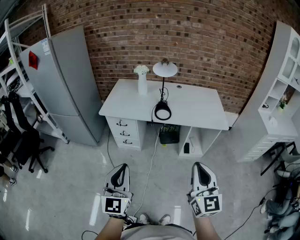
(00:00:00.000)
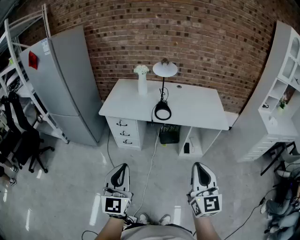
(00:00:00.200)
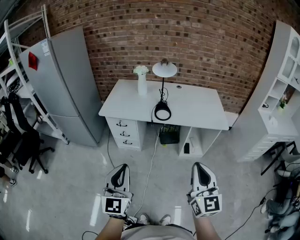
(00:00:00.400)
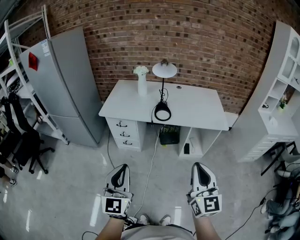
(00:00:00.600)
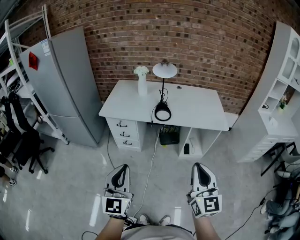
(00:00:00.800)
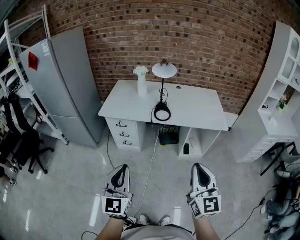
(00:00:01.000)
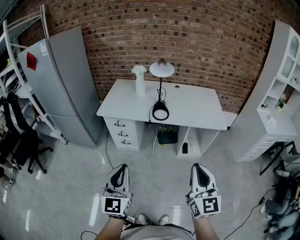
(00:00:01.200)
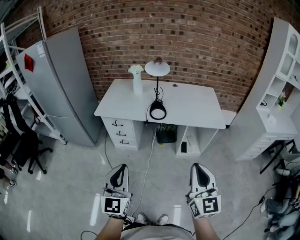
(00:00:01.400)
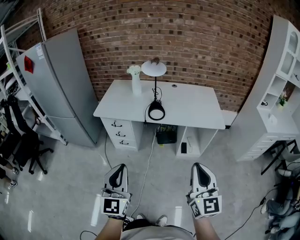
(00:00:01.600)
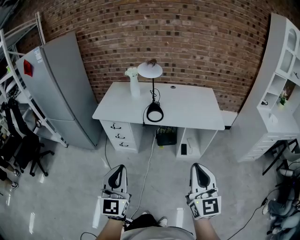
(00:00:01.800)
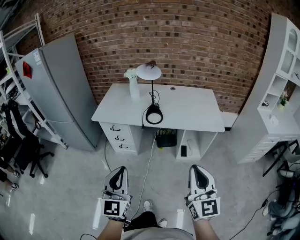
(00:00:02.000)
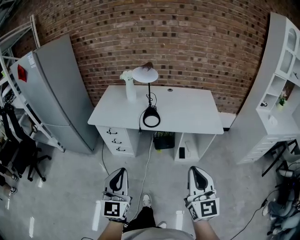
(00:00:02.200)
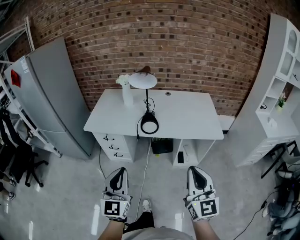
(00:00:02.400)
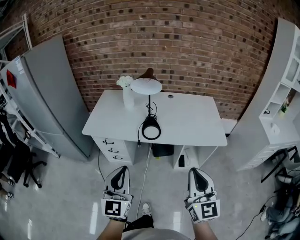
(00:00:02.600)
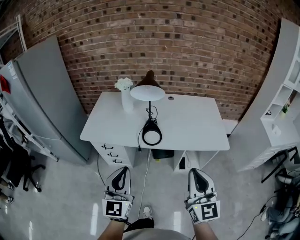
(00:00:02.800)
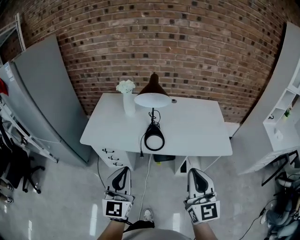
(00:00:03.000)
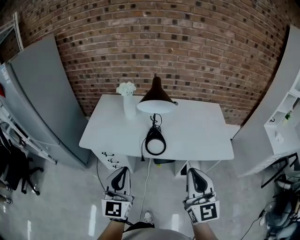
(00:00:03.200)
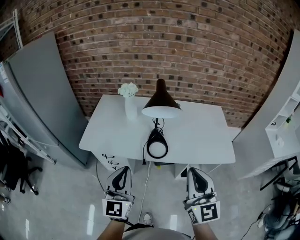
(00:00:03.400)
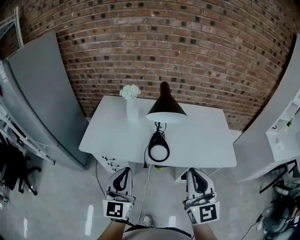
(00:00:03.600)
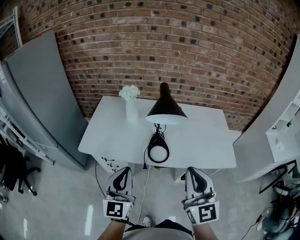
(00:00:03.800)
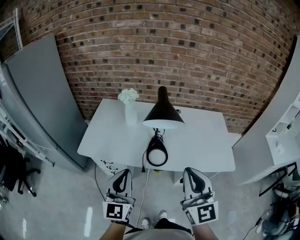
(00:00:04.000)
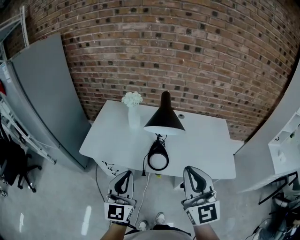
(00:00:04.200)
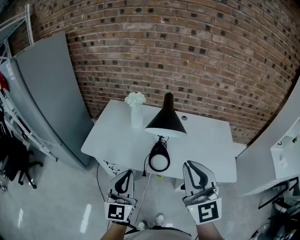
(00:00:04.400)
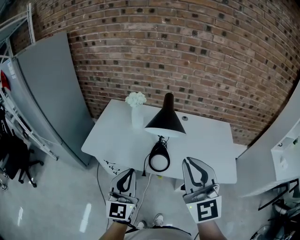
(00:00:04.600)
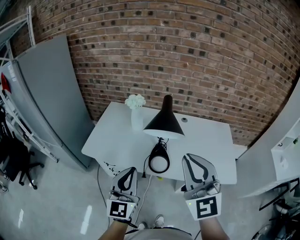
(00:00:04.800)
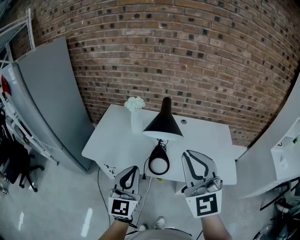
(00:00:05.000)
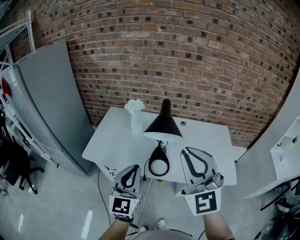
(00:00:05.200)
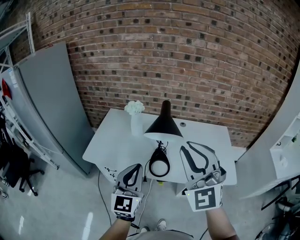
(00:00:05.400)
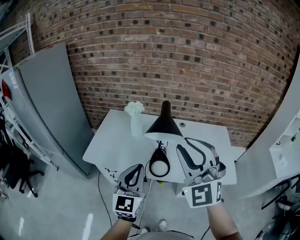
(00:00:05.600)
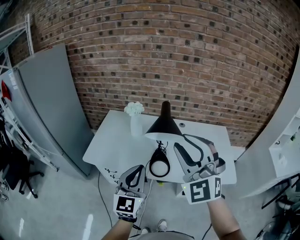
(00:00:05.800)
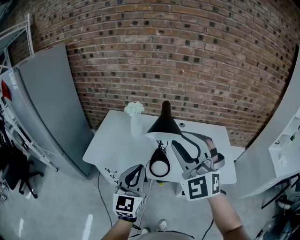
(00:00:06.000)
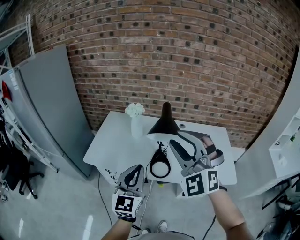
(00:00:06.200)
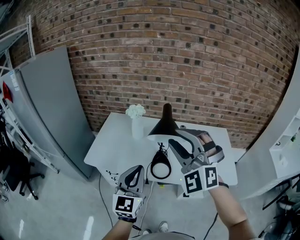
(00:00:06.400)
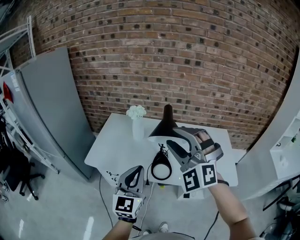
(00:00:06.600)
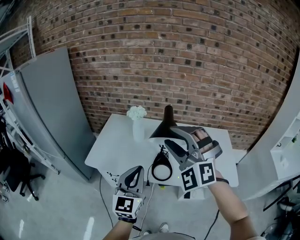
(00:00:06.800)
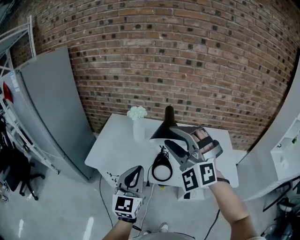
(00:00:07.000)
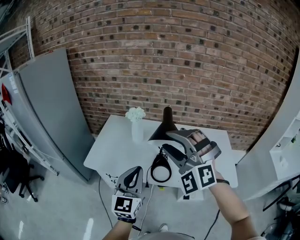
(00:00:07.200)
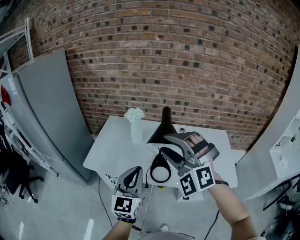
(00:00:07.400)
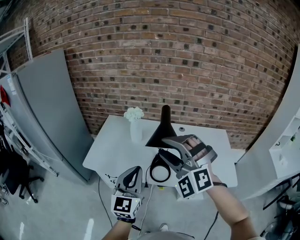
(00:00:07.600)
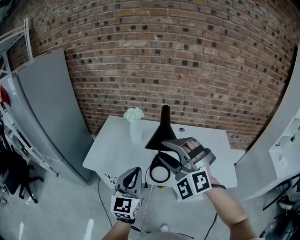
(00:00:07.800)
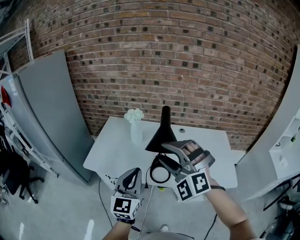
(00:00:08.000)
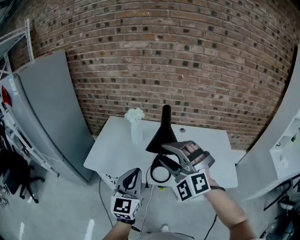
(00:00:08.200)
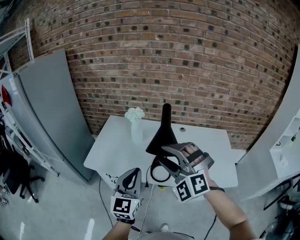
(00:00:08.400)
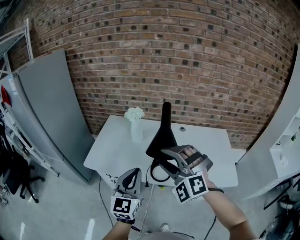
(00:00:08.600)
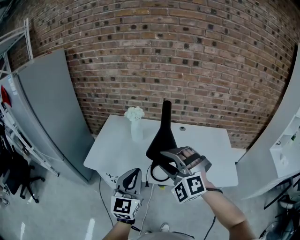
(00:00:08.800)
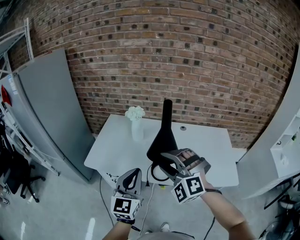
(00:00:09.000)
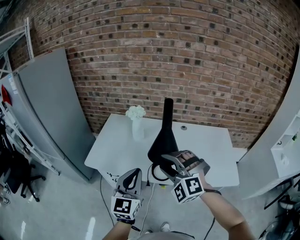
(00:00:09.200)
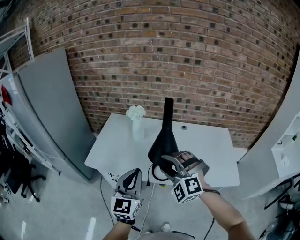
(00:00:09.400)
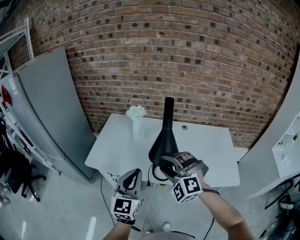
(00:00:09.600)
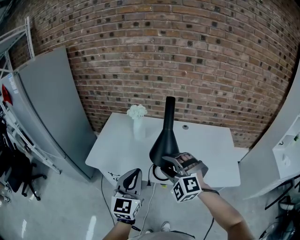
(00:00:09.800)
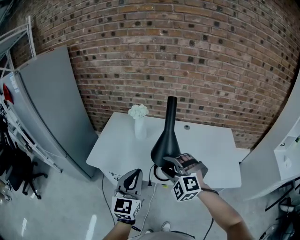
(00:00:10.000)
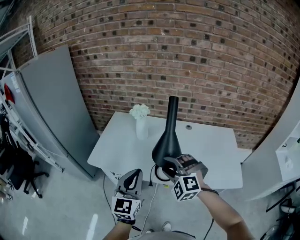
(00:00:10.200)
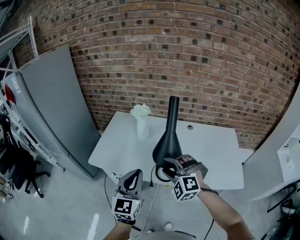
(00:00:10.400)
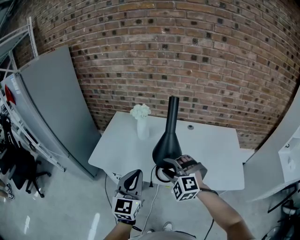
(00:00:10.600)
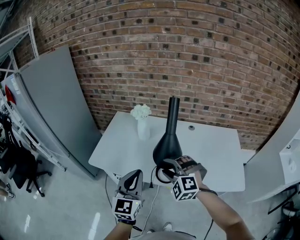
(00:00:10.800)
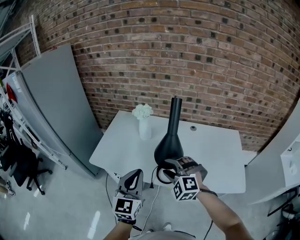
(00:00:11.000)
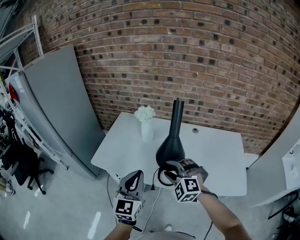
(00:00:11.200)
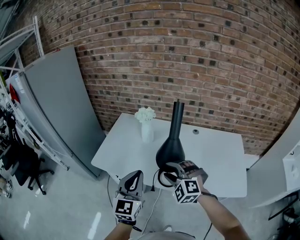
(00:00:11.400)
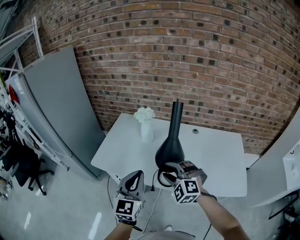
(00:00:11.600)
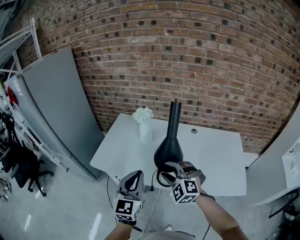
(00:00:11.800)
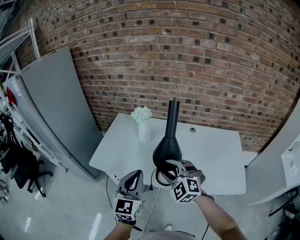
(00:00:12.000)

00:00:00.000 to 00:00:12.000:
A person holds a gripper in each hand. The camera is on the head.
00:00:00.000 to 00:00:01.600: Both grippers move to the right, about 5 cm.
00:00:01.600 to 00:00:03.000: Both grippers travel together forward, about 25 cm.
00:00:03.000 to 00:00:04.400: The left gripper is displaced forward by roughly 10 cm. The right gripper heads forward, upward and to the left, covering about 20 cm.
00:00:04.400 to 00:00:06.000: The right gripper goes approximately 10 cm upward and forward, rolls counterclockwise, seen from behind, by roughly 40 degrees, and opens its fingers.
00:00:06.000 to 00:00:07.600: The right gripper moves about 5 cm, and swivels approximately 20 degrees.
00:00:07.600 to 00:00:09.000: The right gripper travels downward by approximately 10 cm.
00:00:09.000 to 00:00:10.400: The right gripper moves downward, some 10 cm.
00:00:10.400 to 00:00:12.000: The grippers stay close to where they were, moving slightly.

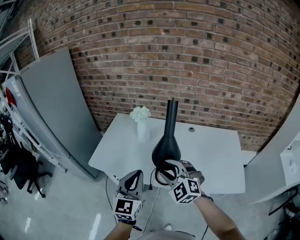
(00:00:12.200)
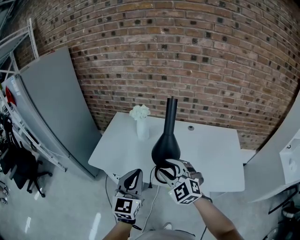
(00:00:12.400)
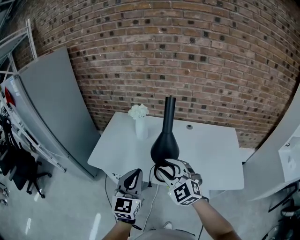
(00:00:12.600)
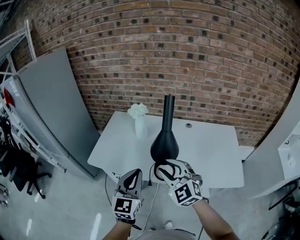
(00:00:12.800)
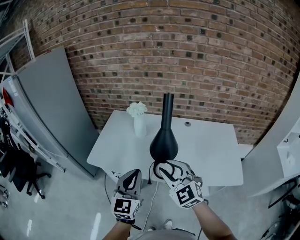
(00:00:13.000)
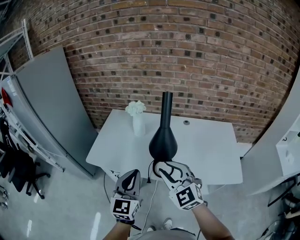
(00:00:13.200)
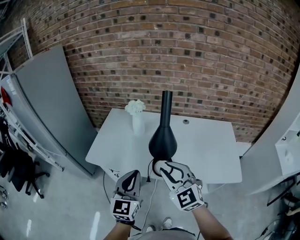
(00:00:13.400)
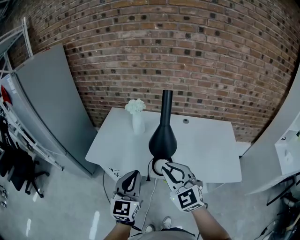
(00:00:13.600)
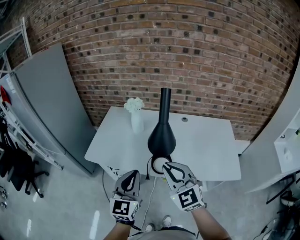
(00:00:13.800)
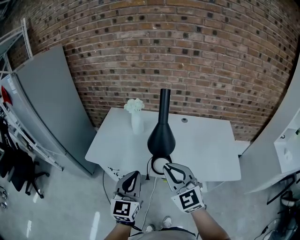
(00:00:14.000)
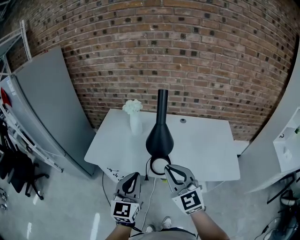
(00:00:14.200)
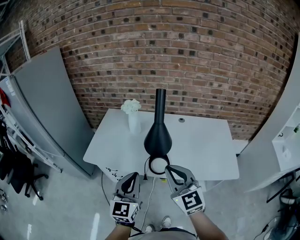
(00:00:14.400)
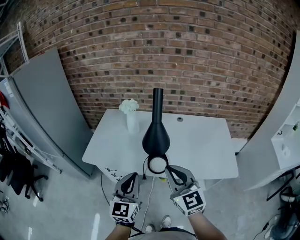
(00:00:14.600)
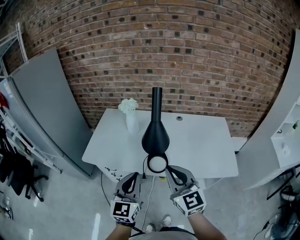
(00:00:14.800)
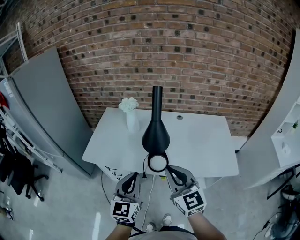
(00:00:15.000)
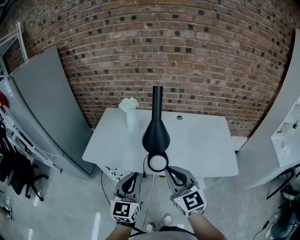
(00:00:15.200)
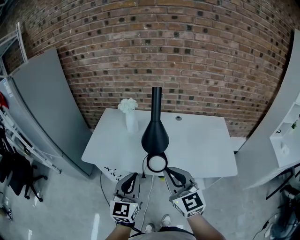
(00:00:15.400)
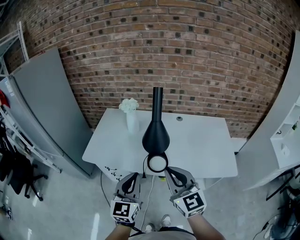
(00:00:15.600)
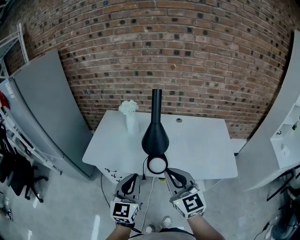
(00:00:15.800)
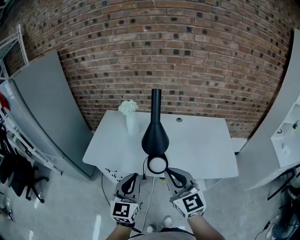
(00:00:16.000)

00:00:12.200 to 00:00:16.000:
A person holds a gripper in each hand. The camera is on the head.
00:00:12.200 to 00:00:13.400: The right gripper is displaced backward and upward by some 10 cm, rotates roughly 20 degrees, and closes.
00:00:13.400 to 00:00:14.800: The right gripper shifts by approximately 5 cm, turns by some 20 degrees, and closes up.
00:00:14.800 to 00:00:16.000: There are only small adjustments of the grippers.

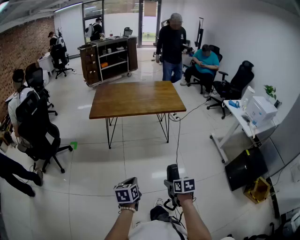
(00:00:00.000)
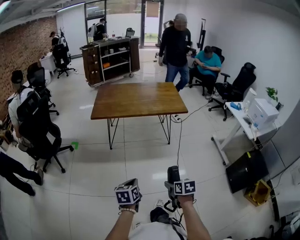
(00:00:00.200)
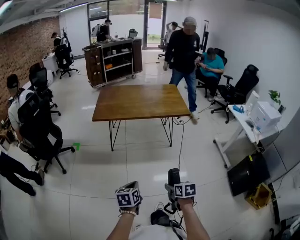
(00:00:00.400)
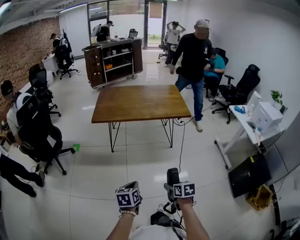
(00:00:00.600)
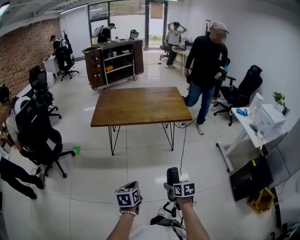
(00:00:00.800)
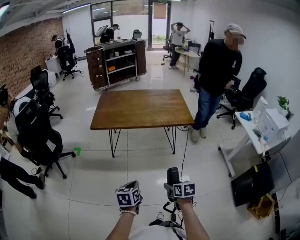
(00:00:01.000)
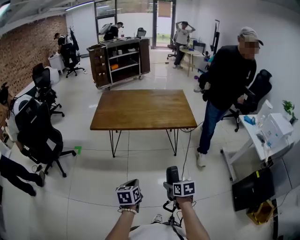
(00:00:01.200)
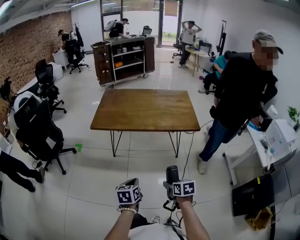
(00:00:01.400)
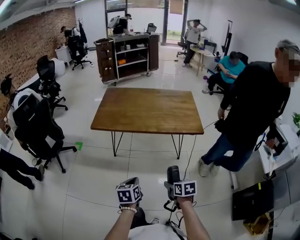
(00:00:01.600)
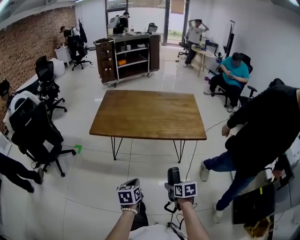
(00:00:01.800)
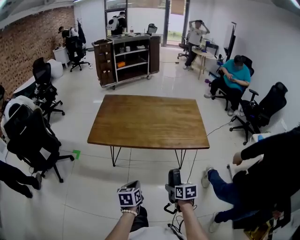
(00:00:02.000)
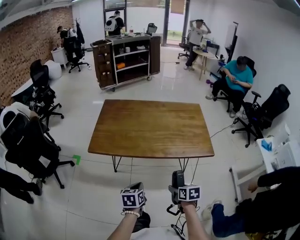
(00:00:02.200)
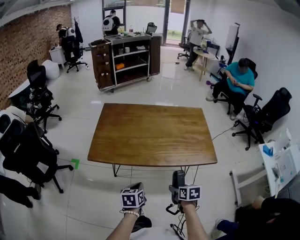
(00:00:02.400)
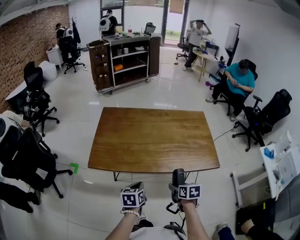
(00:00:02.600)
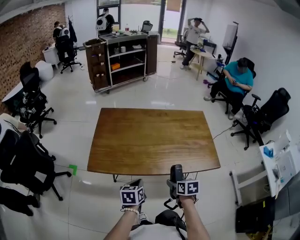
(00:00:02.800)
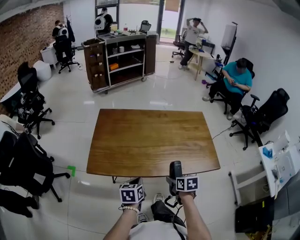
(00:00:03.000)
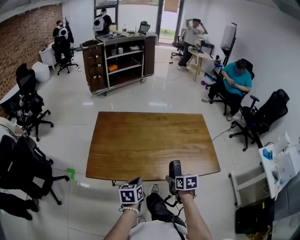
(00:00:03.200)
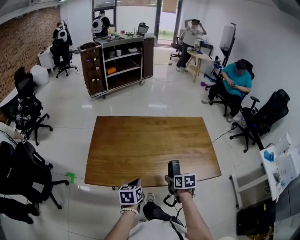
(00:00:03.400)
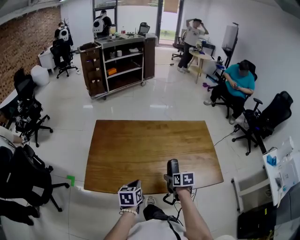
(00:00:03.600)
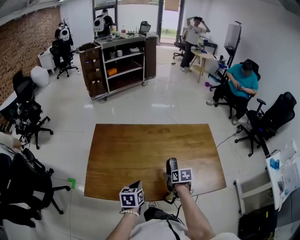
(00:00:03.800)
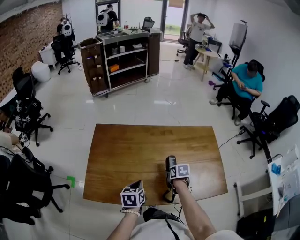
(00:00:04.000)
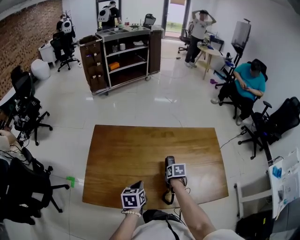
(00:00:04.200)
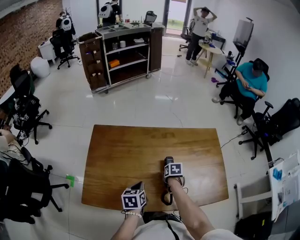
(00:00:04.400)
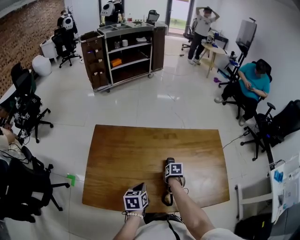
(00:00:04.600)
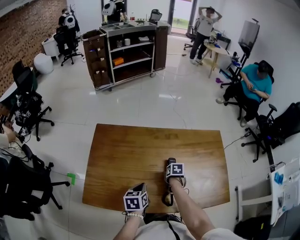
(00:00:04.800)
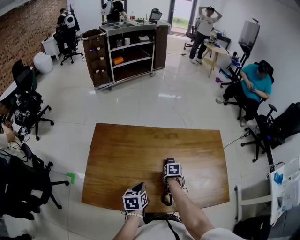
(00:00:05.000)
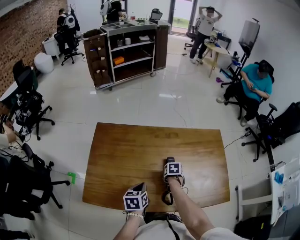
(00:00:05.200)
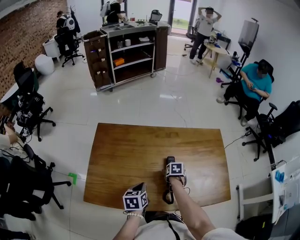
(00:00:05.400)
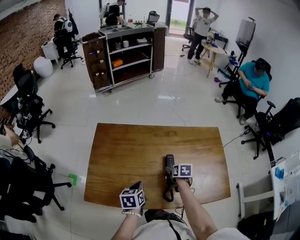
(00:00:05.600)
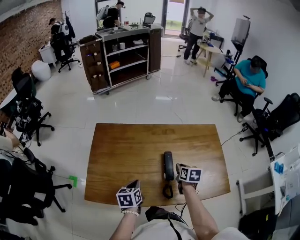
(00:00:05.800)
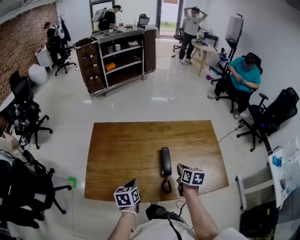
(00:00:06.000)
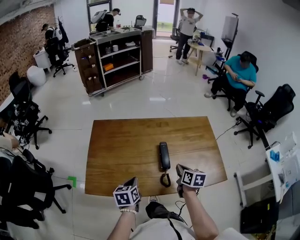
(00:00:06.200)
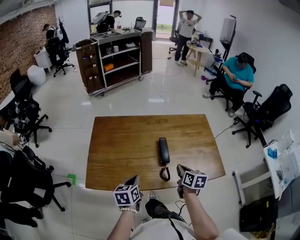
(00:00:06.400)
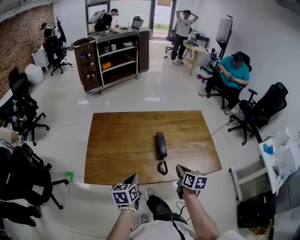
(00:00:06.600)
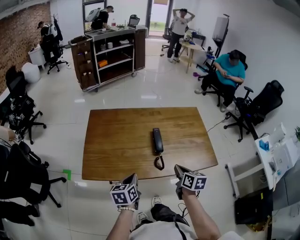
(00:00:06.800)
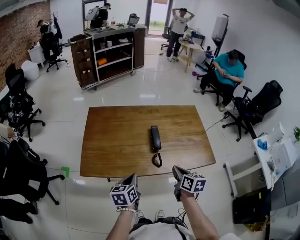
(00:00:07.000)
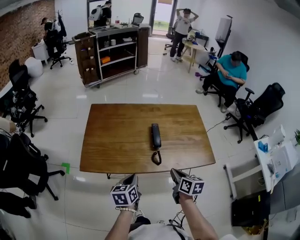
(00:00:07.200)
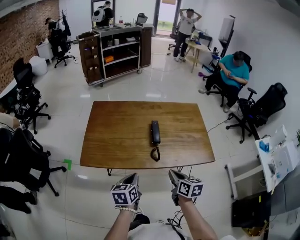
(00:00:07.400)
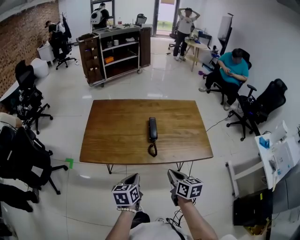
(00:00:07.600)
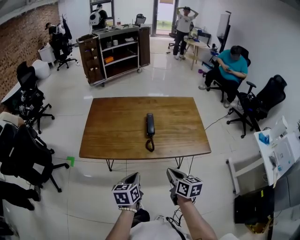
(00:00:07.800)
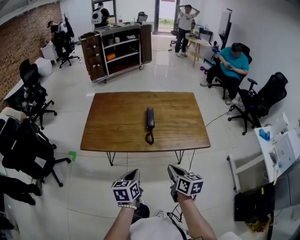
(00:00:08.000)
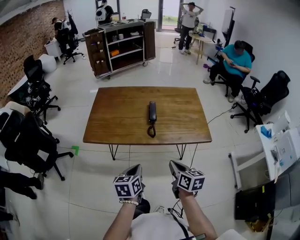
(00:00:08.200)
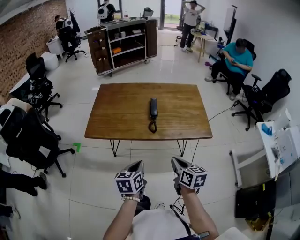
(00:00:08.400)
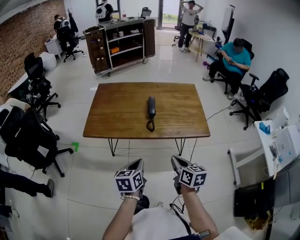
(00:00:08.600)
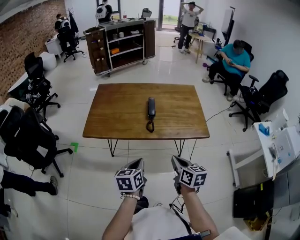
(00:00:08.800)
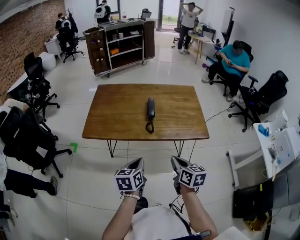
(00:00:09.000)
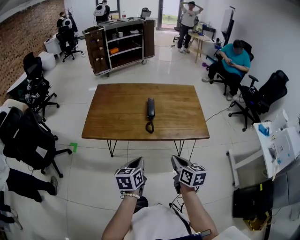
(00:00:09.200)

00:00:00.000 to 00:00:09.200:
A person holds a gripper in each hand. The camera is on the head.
00:00:00.000 to 00:00:01.600: The two grippers go approximately 20 cm forward.
00:00:01.600 to 00:00:03.000: The grippers both shift forward by roughly 35 cm.
00:00:03.000 to 00:00:04.600: The right gripper travels forward and downward by approximately 30 cm, and changes its angle by some 20 degrees, while the left gripper is displaced forward by approximately 20 cm.
00:00:04.600 to 00:00:06.200: The right gripper goes approximately 15 cm upward, tips its fingers upward by about 40 degrees, and closes up. The left gripper shifts by roughly 10 cm.
00:00:06.200 to 00:00:07.600: The right gripper travels backward by about 25 cm. The left gripper shifts approximately 20 cm backward and to the right.
00:00:07.600 to 00:00:09.200: The two grippers go about 10 cm backward.
